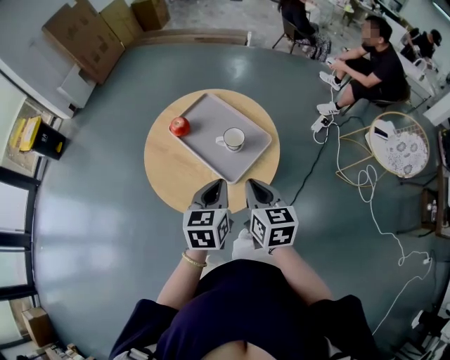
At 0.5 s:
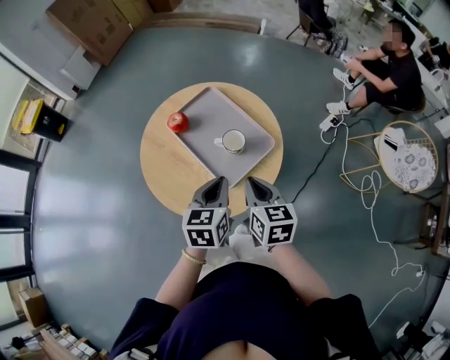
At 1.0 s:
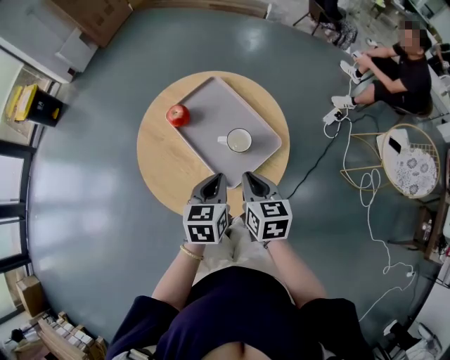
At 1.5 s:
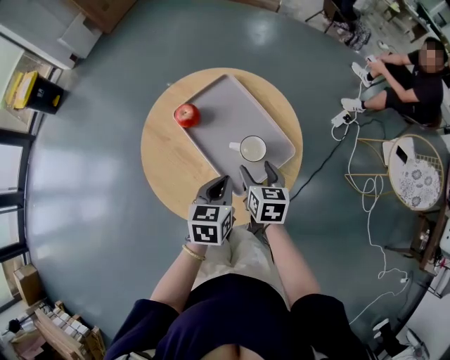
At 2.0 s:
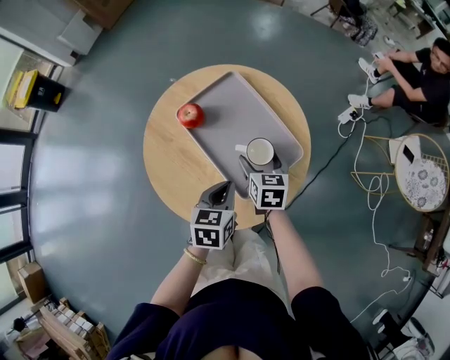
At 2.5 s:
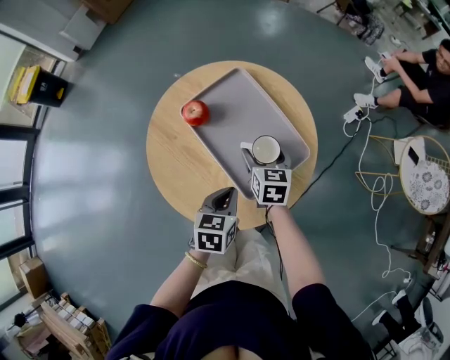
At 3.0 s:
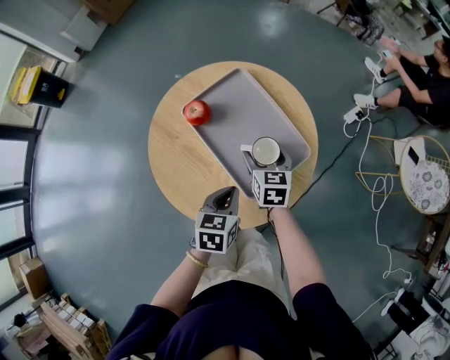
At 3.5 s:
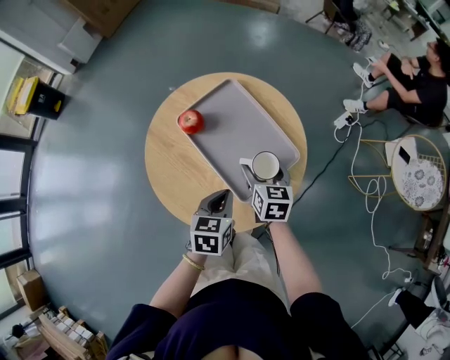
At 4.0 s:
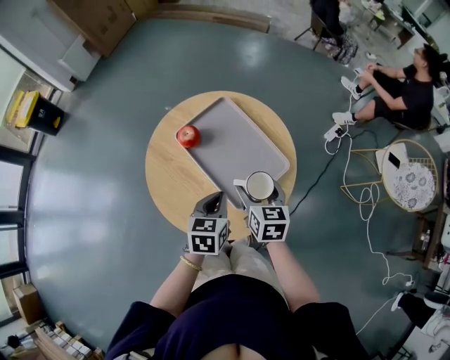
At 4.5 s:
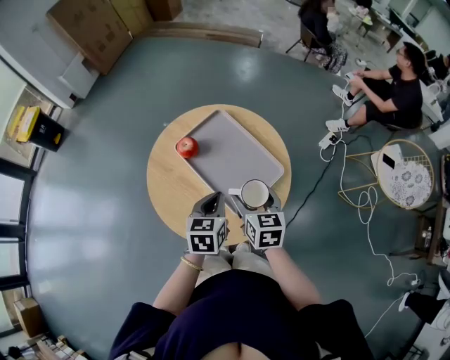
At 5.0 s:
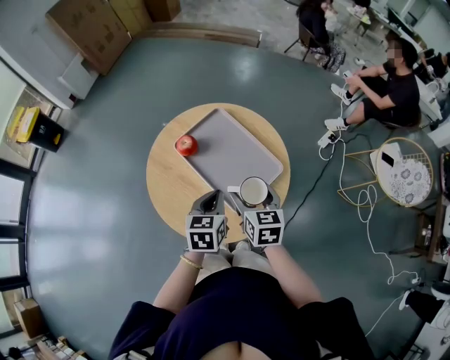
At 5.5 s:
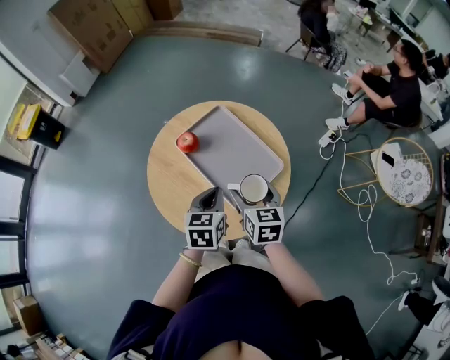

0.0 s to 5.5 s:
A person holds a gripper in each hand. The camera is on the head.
0.0 to 2.0 s: The left gripper shifts about 15 cm downward and forward. The right gripper goes some 25 cm forward and downward, and opens.
2.0 to 3.5 s: There are only small adjustments of the grippers.
3.5 to 5.5 s: The right gripper shifts about 10 cm upward and backward, while the left gripper goes roughly 5 cm upward.

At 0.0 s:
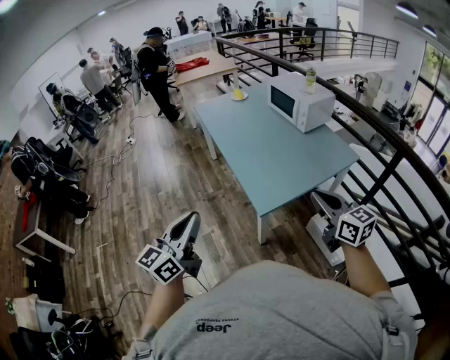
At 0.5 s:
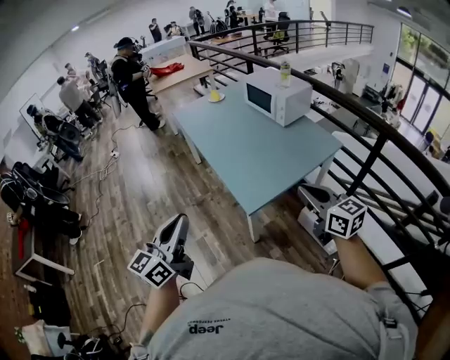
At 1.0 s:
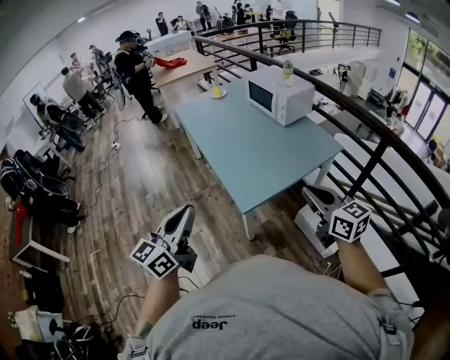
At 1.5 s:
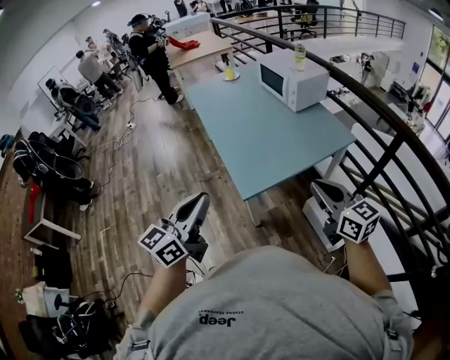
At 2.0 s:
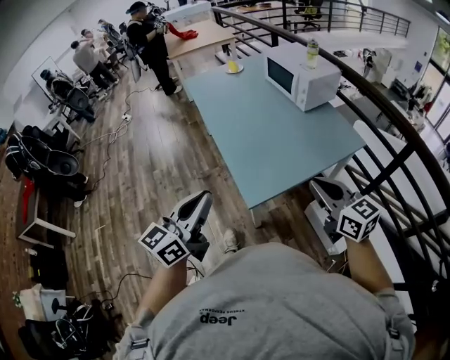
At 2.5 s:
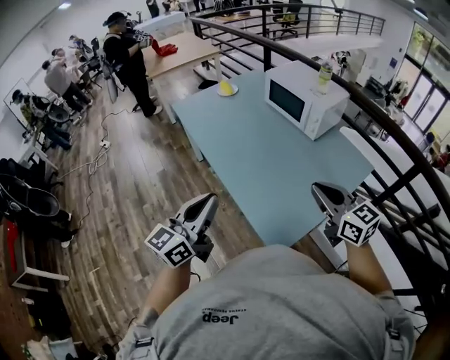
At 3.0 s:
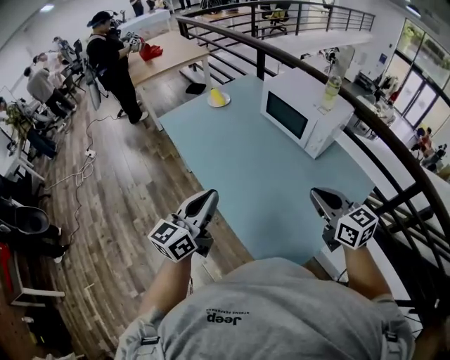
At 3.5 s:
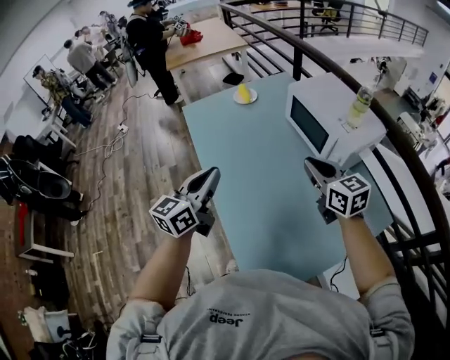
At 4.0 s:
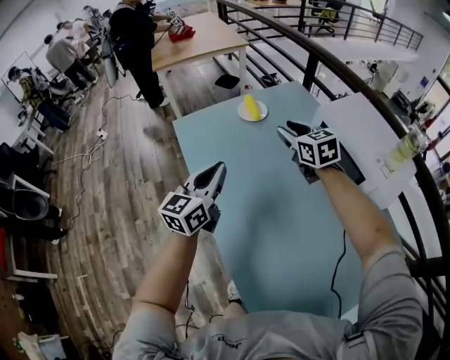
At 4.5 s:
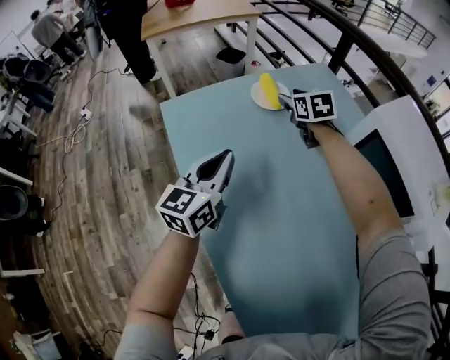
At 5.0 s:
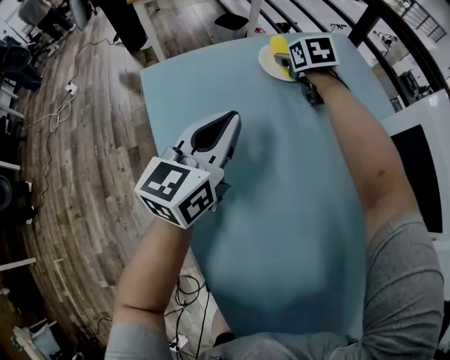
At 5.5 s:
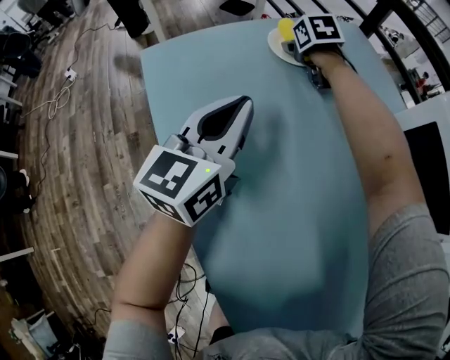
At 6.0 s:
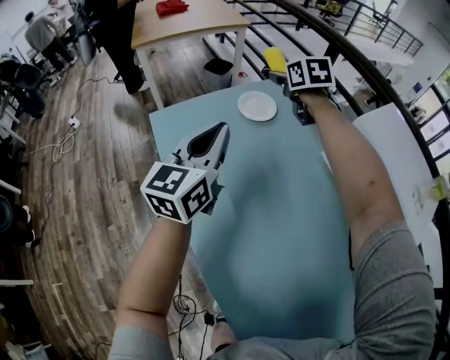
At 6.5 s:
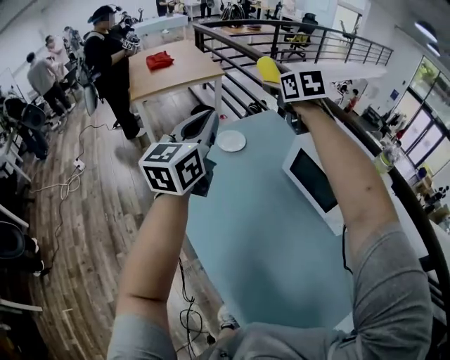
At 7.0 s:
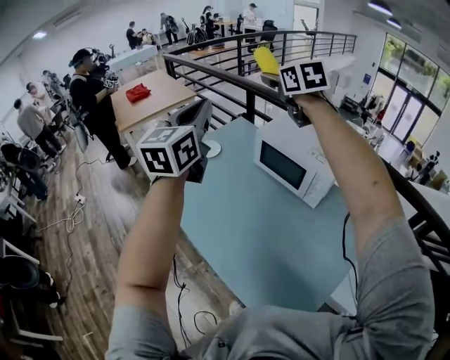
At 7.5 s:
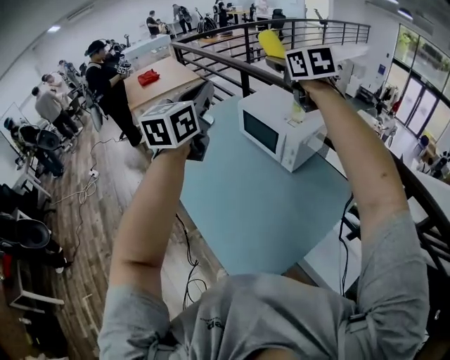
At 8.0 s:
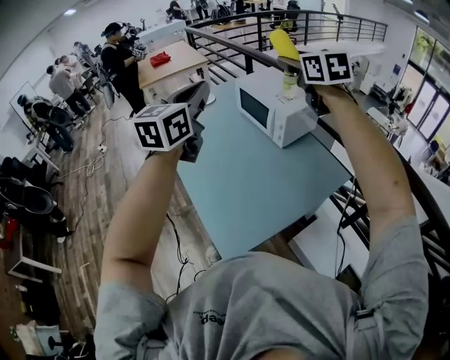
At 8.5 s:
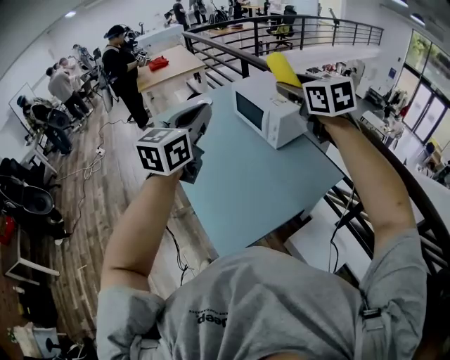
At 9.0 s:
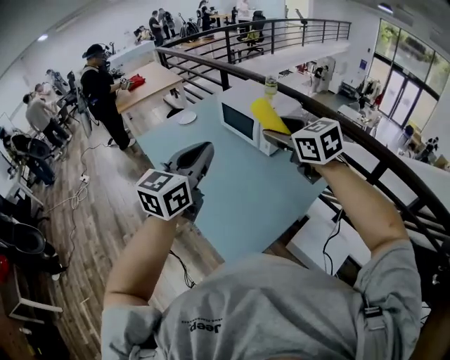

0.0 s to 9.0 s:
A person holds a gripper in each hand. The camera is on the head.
0.0 to 2.0 s: The left gripper moves to the right and forward, some 15 cm. Meanwhile the right gripper heads forward, covering some 5 cm.
2.0 to 4.5 s: The two grippers travel together, forward, some 1 m. The right gripper rotates some 30 degrees, and opens its fingers.
4.5 to 7.0 s: The right gripper moves upward, backward and to the right, about 60 cm, and rotates about 20 degrees; the left gripper goes some 40 cm upward, and swivels some 20 degrees.
7.0 to 9.0 s: The two grippers travel together, backward and to the right, some 50 cm.

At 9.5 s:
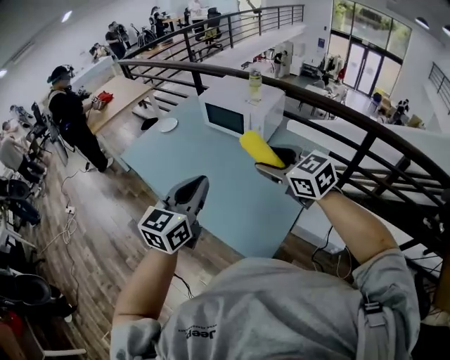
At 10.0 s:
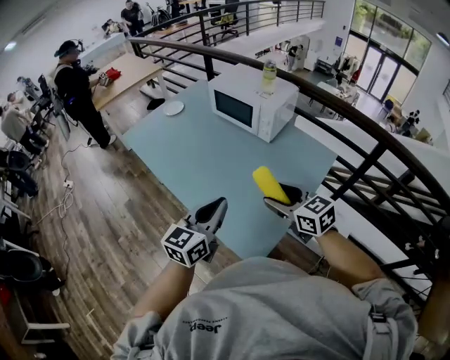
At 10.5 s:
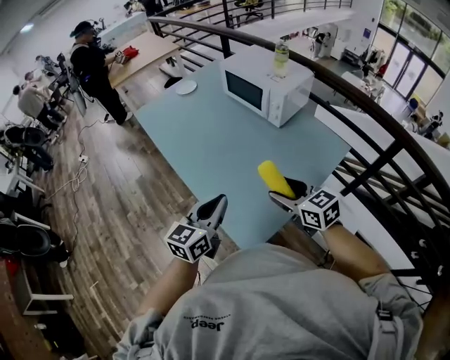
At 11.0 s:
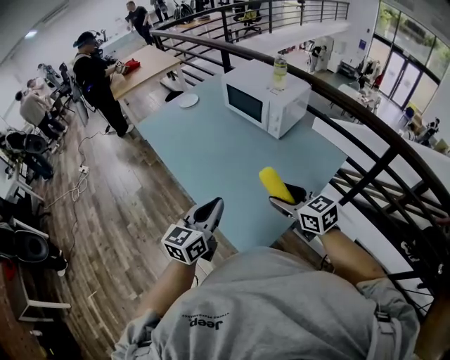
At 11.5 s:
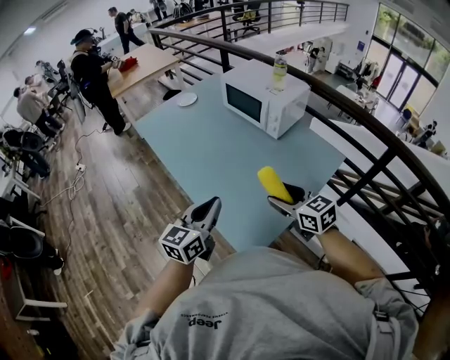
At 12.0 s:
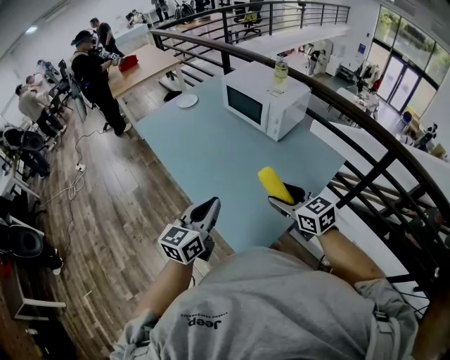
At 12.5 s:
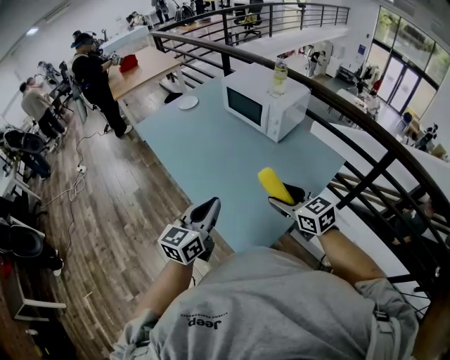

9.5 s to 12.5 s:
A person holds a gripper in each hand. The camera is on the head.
9.5 to 11.0 s: Both grippers travel together downward, approximately 15 cm.
11.0 to 12.5 s: Both grippers stay put.

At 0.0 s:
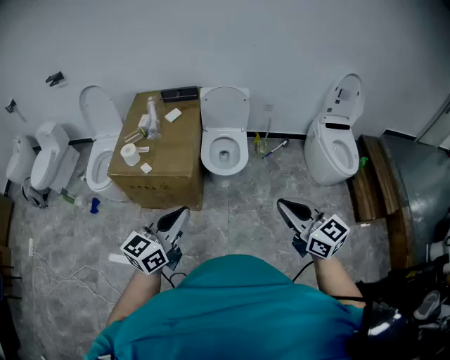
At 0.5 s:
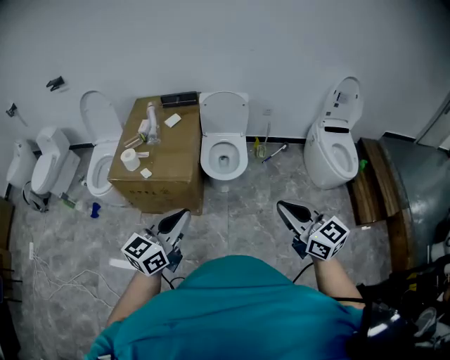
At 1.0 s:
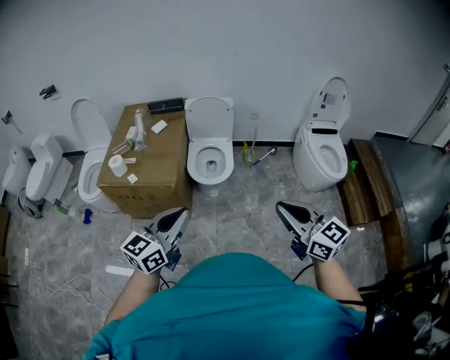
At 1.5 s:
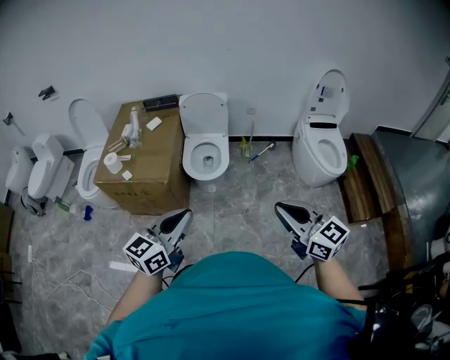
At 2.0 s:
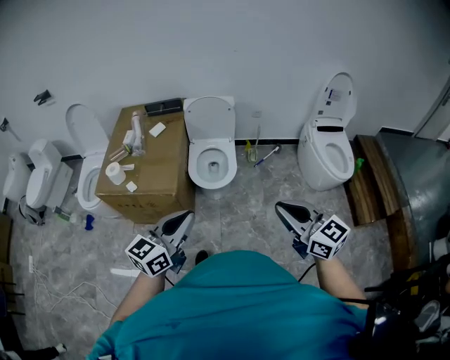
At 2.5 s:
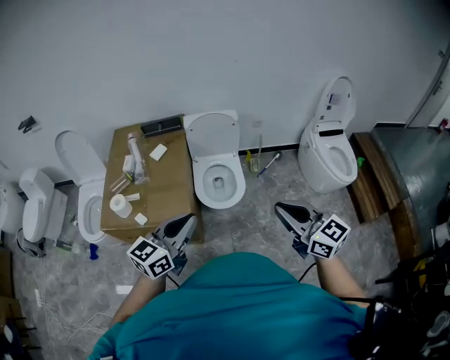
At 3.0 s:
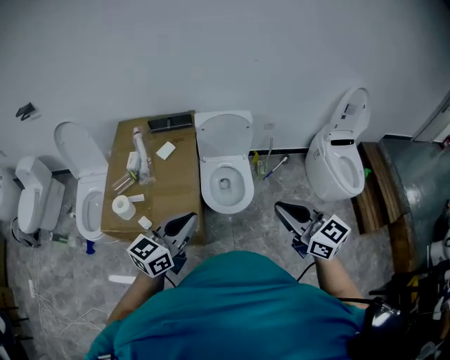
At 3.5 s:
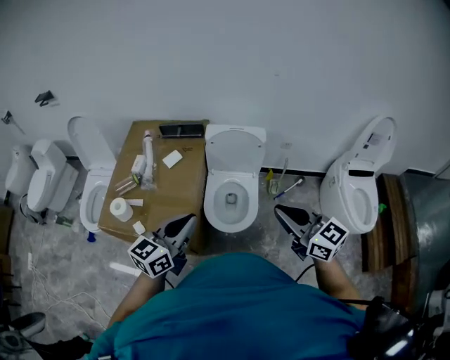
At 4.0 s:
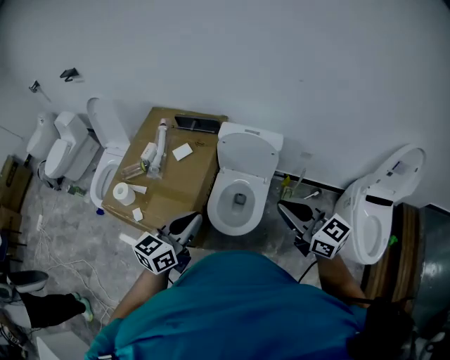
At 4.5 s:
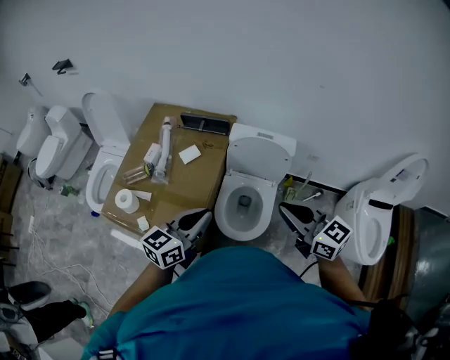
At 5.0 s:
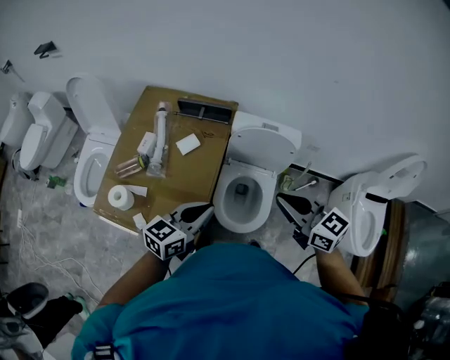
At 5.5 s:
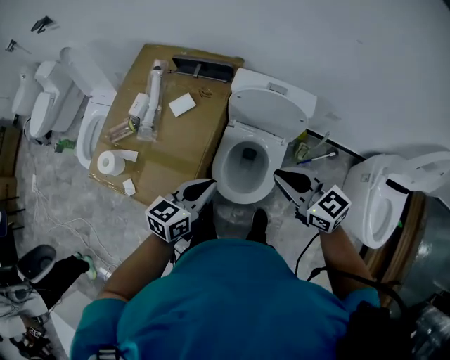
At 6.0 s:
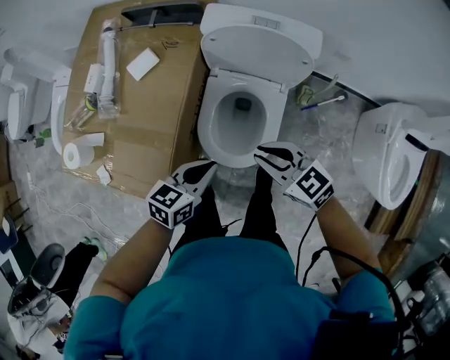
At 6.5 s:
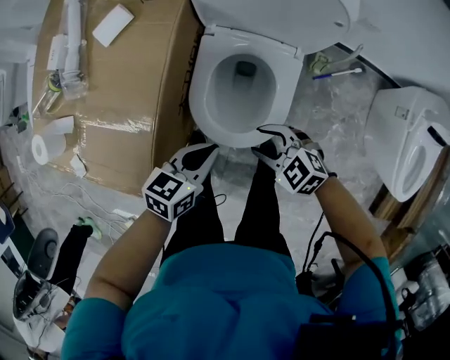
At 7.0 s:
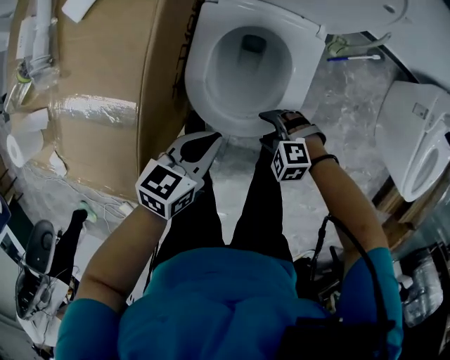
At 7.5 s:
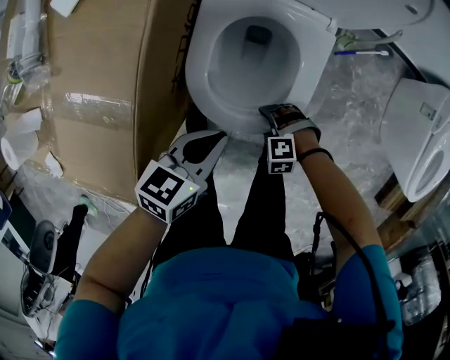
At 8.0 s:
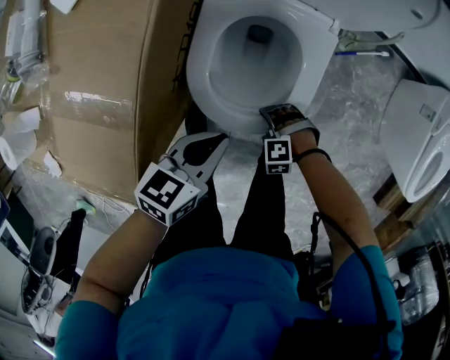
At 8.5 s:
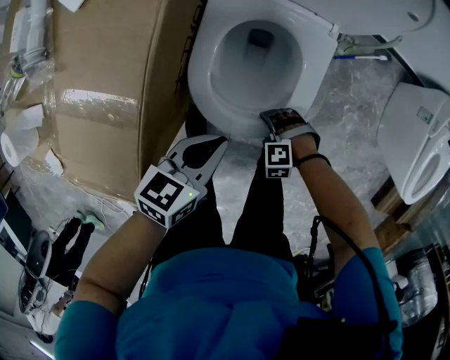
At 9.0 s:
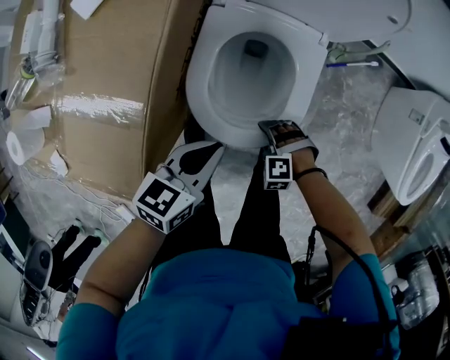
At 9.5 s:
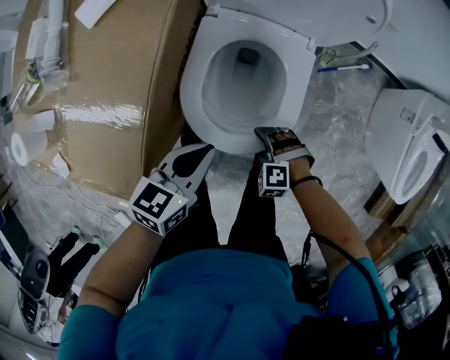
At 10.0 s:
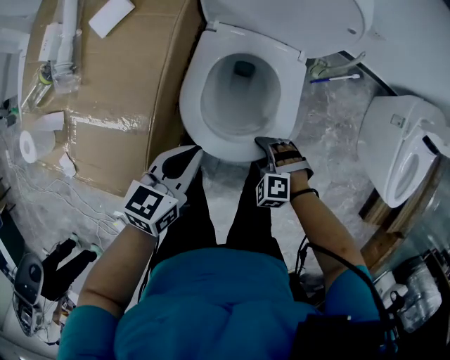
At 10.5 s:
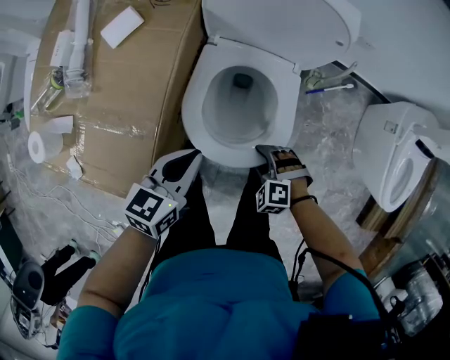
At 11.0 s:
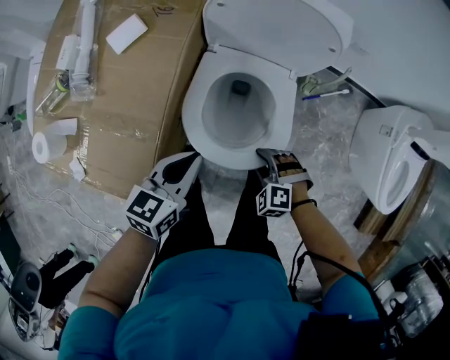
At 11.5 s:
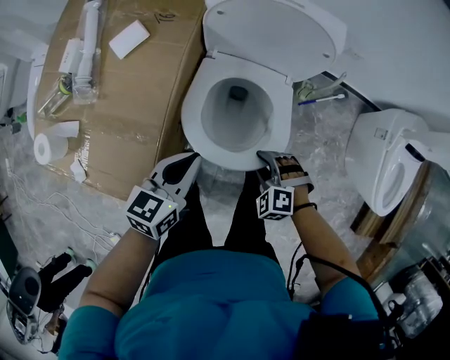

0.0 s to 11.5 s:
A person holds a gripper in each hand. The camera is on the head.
0.0 to 2.0 s: The two grippers go about 10 cm to the right and forward.
2.0 to 4.0 s: The left gripper ends up some 40 cm from where it was, while the right gripper moves about 50 cm, and changes its angle by about 20 degrees.
4.0 to 6.0 s: Both grippers travel together downward, some 35 cm. The right gripper swivels about 30 degrees. Meanwhile the left gripper changes its angle by approximately 30 degrees.
6.0 to 7.5 s: The left gripper travels downward by approximately 20 cm. Meanwhile the right gripper goes approximately 40 cm downward, tips its fingers downward by about 50 degrees, and opens up.
7.5 to 9.5 s: Both grippers travel together upward, approximately 5 cm.
9.5 to 11.5 s: The grippers both shift upward by some 10 cm. The right gripper closes up.
